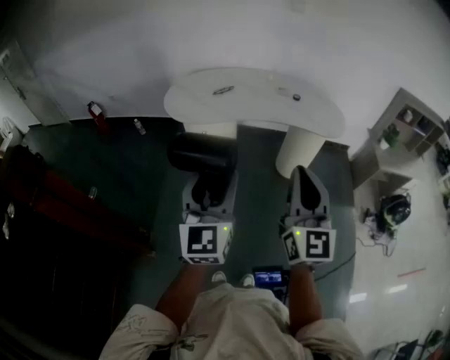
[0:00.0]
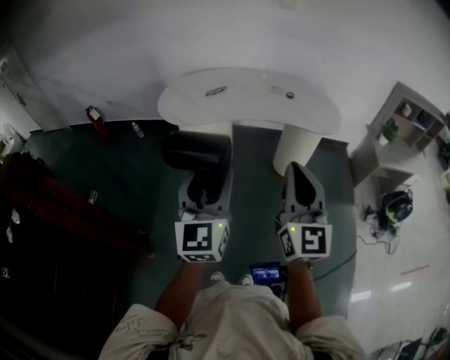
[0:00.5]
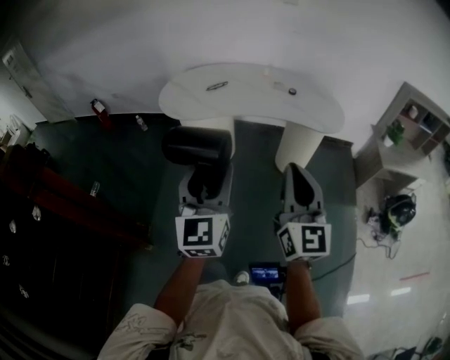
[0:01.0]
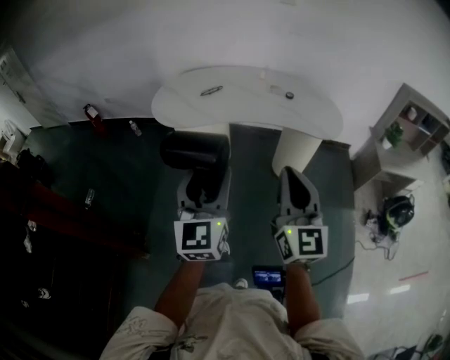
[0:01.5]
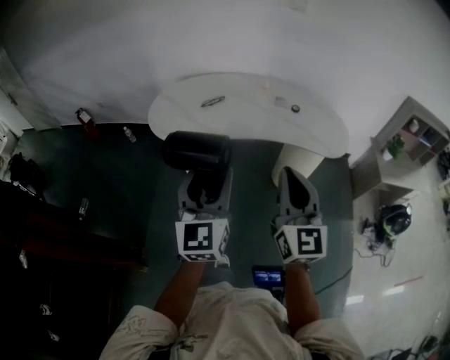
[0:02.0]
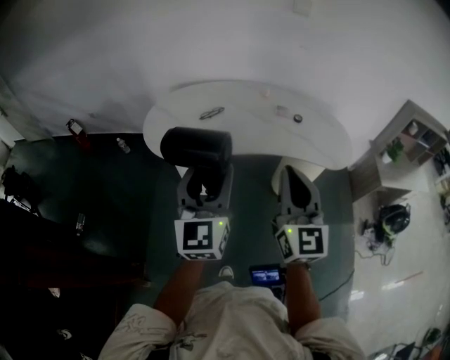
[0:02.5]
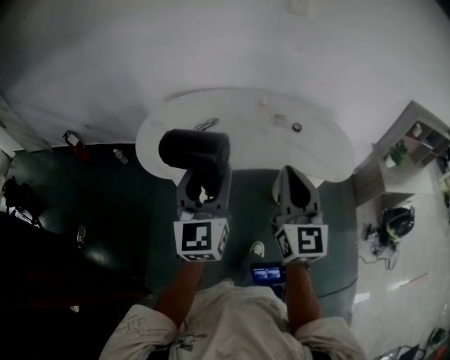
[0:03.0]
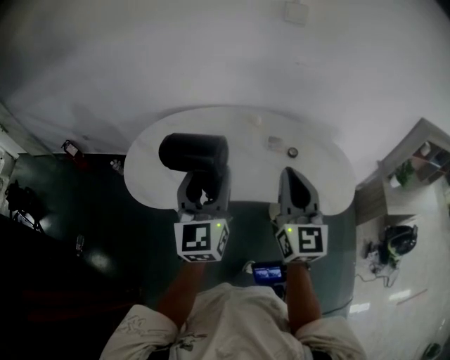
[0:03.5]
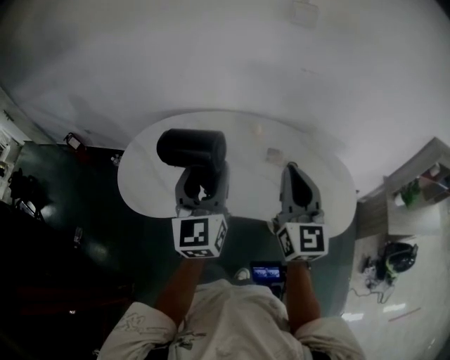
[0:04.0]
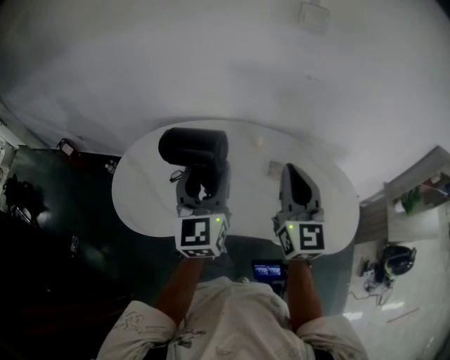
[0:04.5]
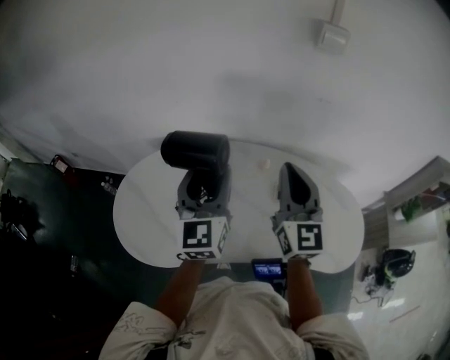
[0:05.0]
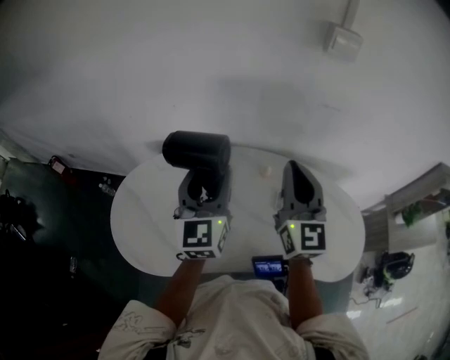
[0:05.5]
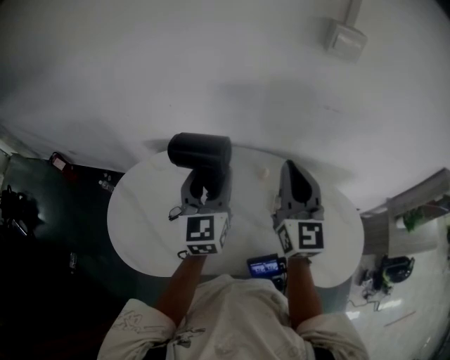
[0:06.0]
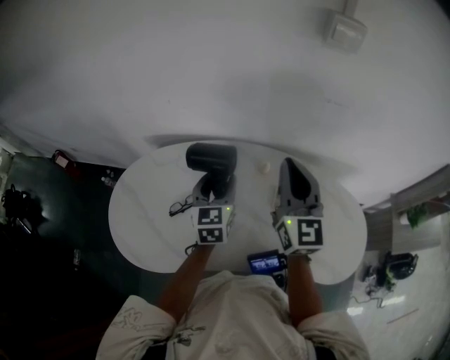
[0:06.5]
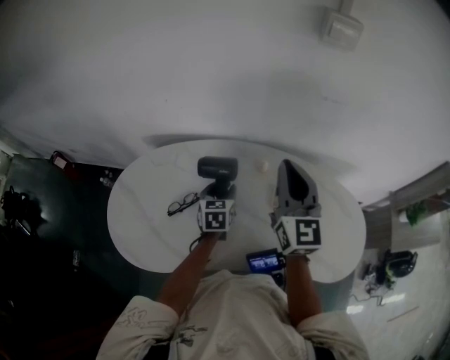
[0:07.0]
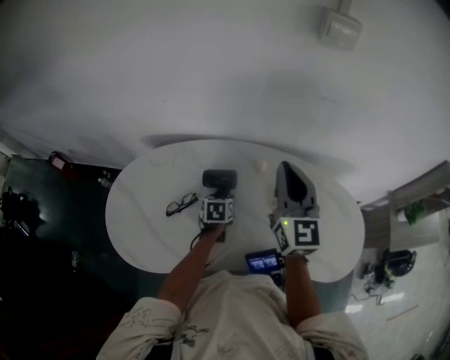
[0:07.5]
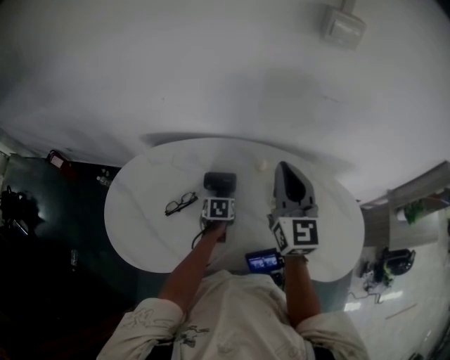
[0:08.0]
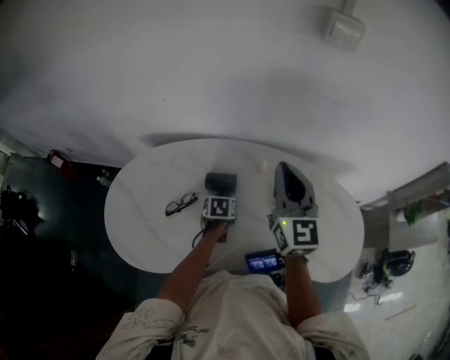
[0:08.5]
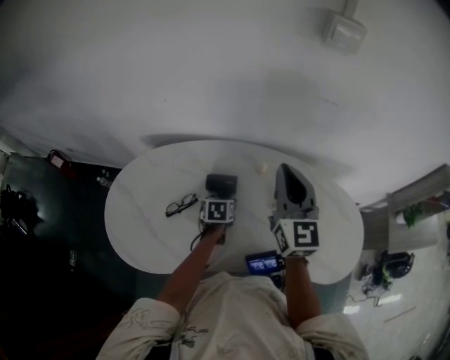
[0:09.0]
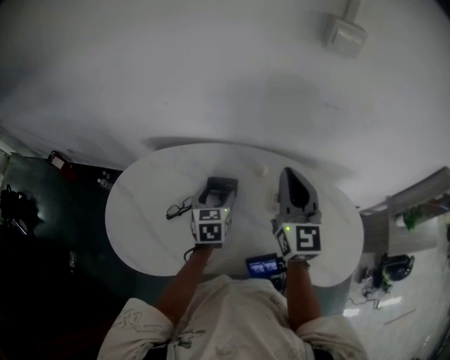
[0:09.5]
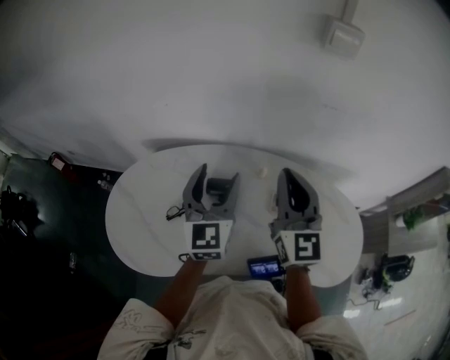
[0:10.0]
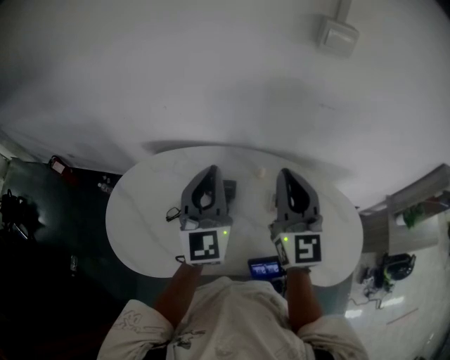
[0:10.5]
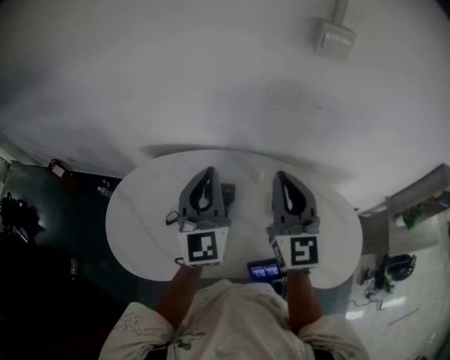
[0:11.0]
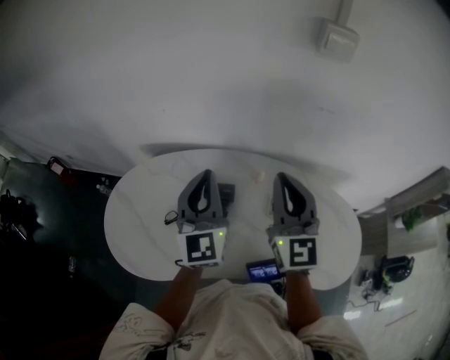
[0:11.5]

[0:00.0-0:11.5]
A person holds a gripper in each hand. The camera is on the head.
0:00.0 to 0:02.0: Both grippers move forward, some 15 cm.
0:02.0 to 0:04.0: The two grippers travel together, forward, roughly 40 cm.
0:04.0 to 0:06.0: The grippers both shift forward by some 25 cm.
0:06.0 to 0:07.5: The left gripper shifts roughly 30 cm downward, and points its fingers approximately 50 degrees further downward.
0:07.5 to 0:09.5: The left gripper goes approximately 10 cm upward.
0:09.5 to 0:11.5: The left gripper travels upward by some 20 cm, points its fingers approximately 40 degrees further upward, and closes its fingers.

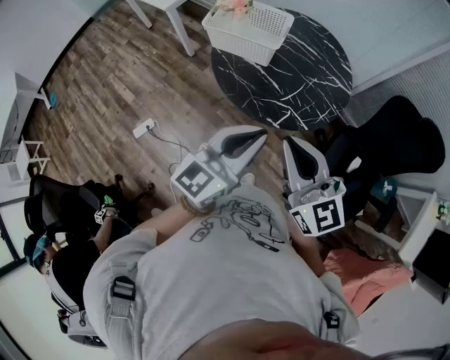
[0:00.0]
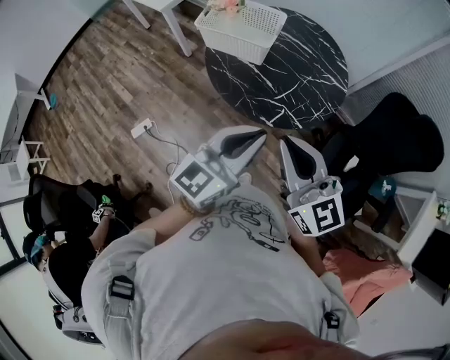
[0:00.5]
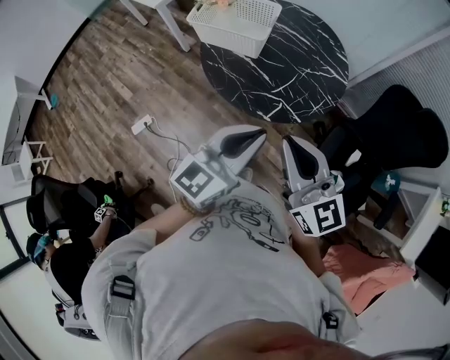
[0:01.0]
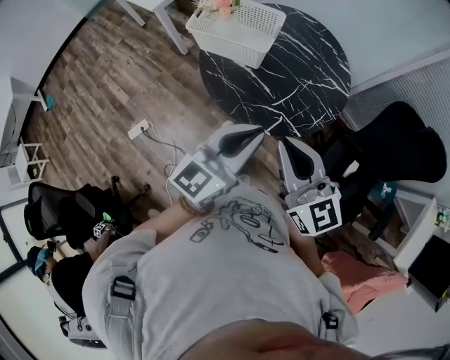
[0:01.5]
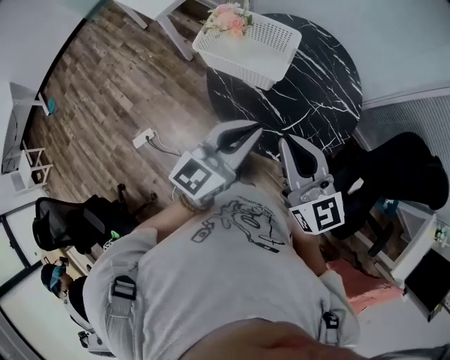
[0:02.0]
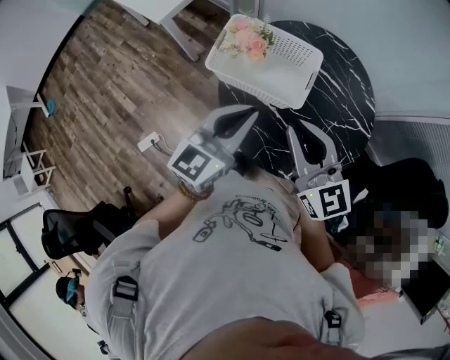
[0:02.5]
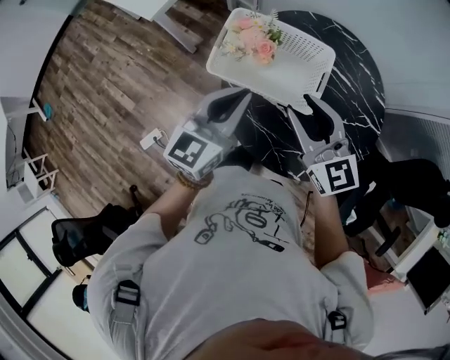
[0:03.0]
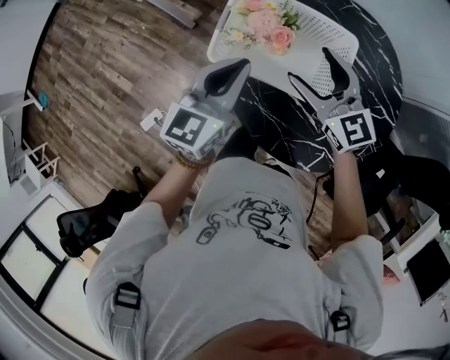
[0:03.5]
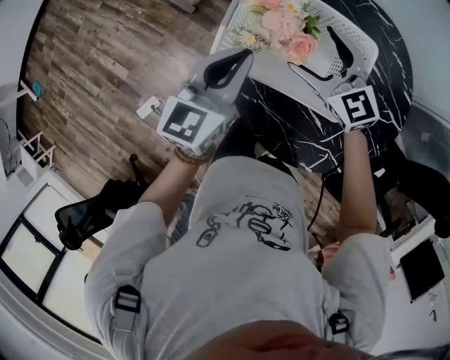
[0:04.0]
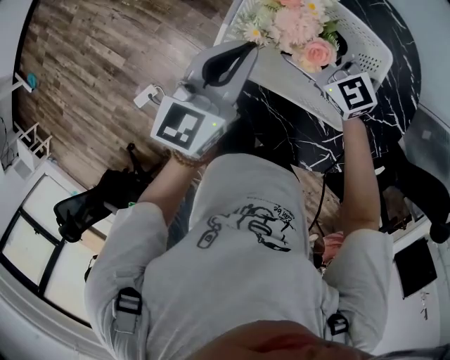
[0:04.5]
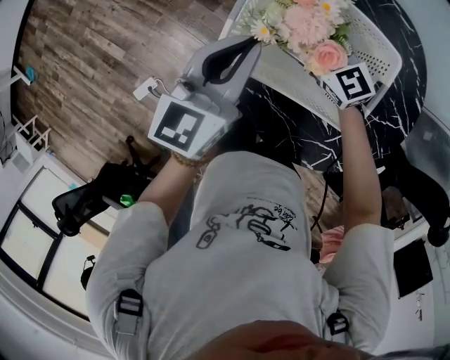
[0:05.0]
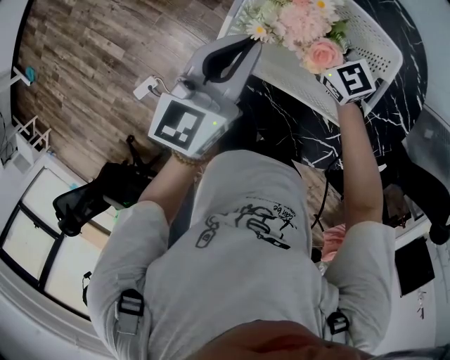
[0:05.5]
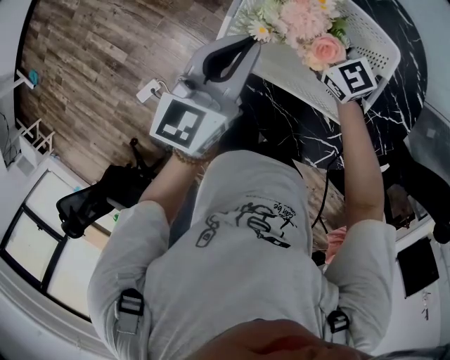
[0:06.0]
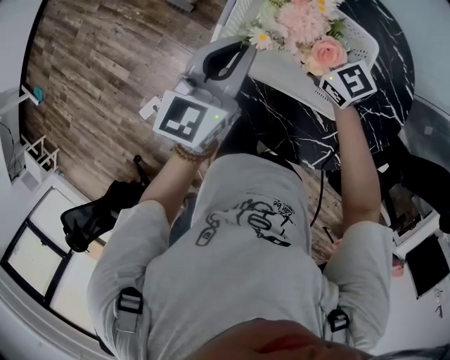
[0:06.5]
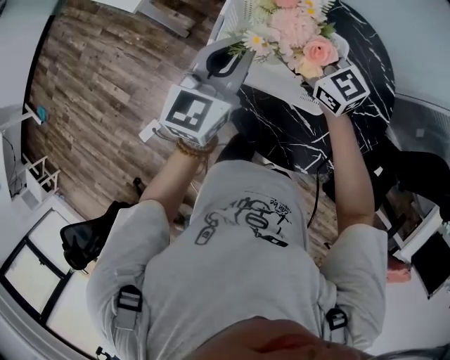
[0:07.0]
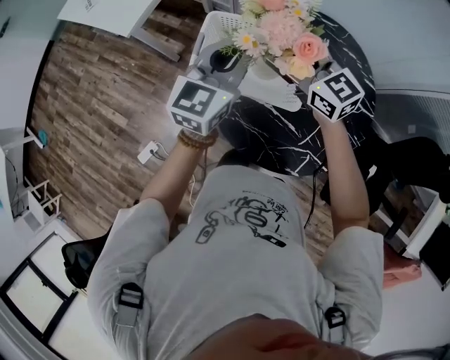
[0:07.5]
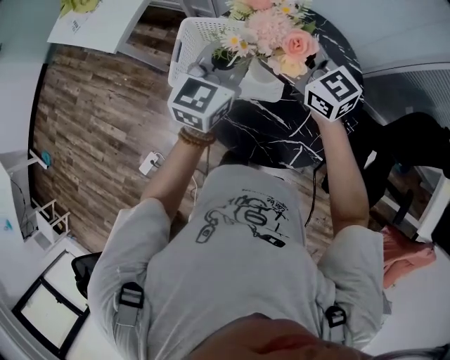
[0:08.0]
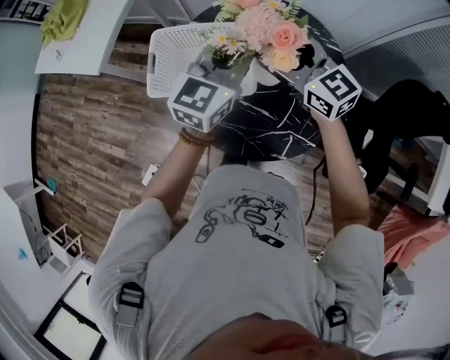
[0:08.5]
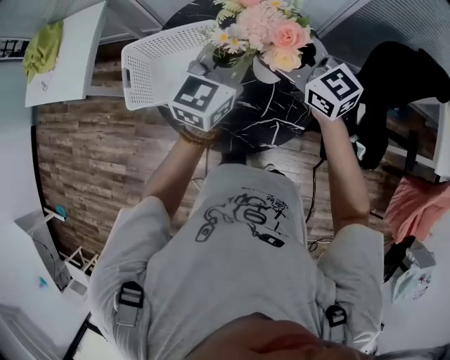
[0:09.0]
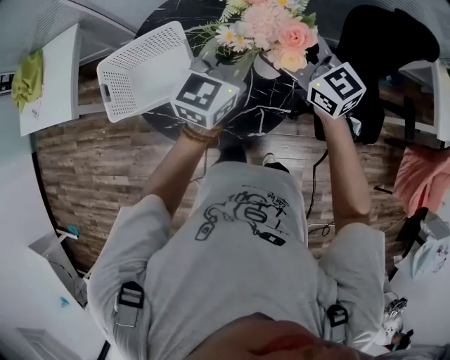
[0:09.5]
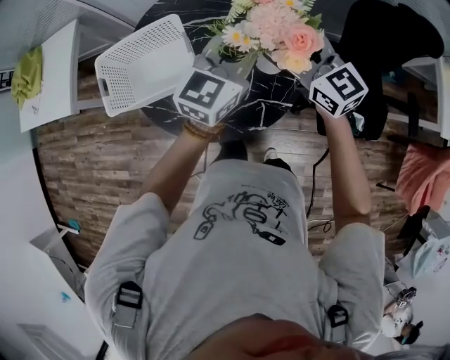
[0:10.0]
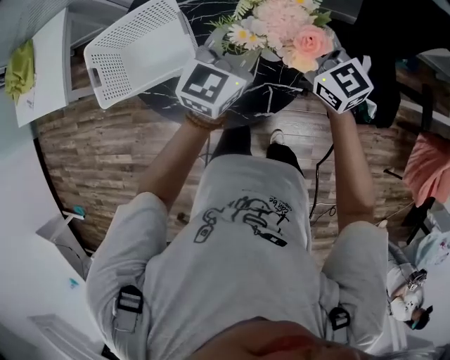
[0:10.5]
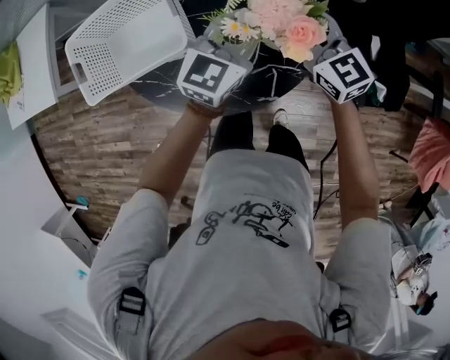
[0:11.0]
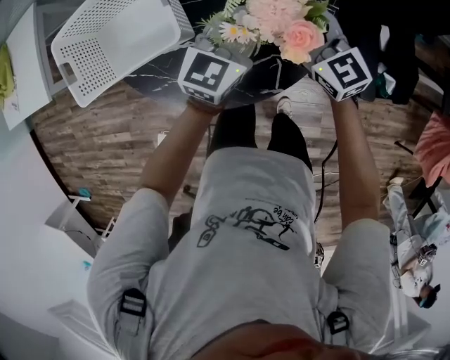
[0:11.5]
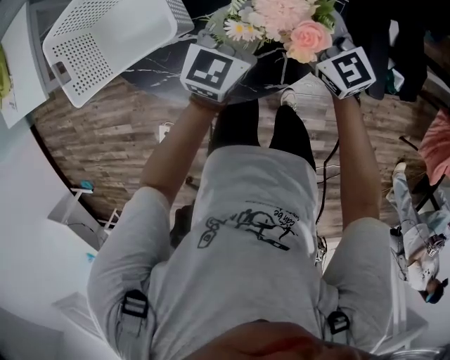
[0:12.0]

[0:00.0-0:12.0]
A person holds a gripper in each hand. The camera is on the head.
0:00.0 to 0:02.0: Both grippers travel together forward, approximately 20 cm.
0:02.0 to 0:04.0: The right gripper goes about 50 cm forward and downward, rotates about 20 degrees, and opens, while the left gripper is displaced forward, to the left and downward by some 40 cm.
0:04.0 to 0:06.0: The right gripper moves downward, about 5 cm.
0:06.0 to 0:08.0: The left gripper moves to the right and upward, about 25 cm, and swivels about 20 degrees. The right gripper is displaced upward, to the right and backward by roughly 30 cm.
0:08.0 to 0:10.0: The right gripper ends up some 30 cm from where it was, and changes its angle by roughly 30 degrees. Meanwhile the left gripper moves roughly 30 cm, and rotates about 30 degrees.
0:10.0 to 0:12.0: Both grippers travel together downward, some 25 cm.

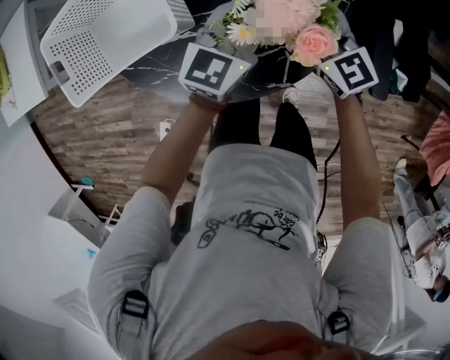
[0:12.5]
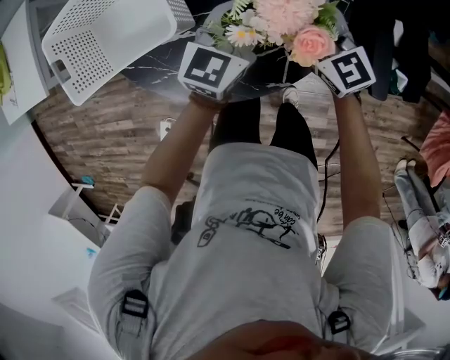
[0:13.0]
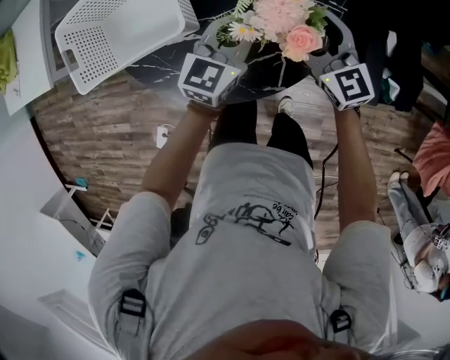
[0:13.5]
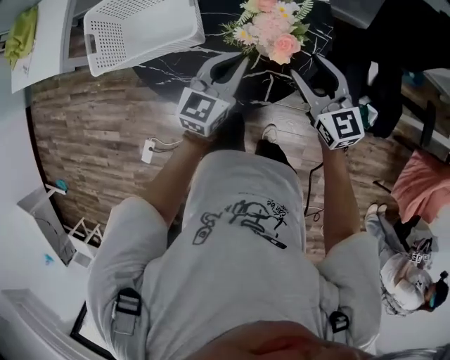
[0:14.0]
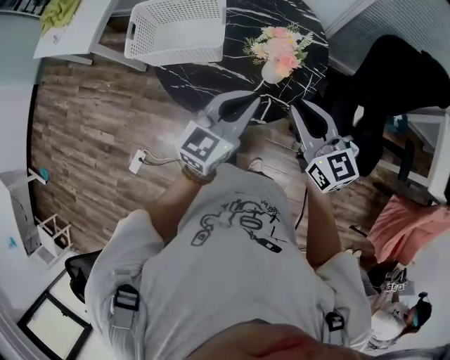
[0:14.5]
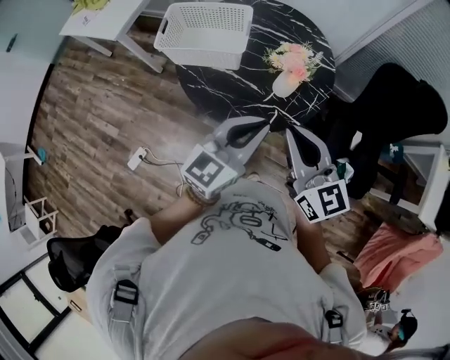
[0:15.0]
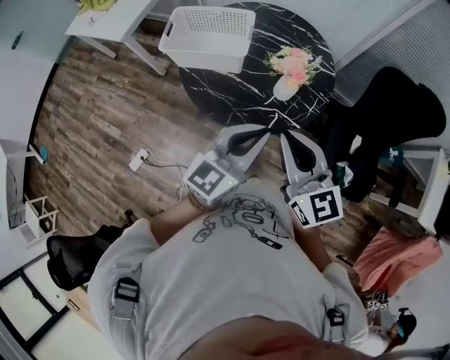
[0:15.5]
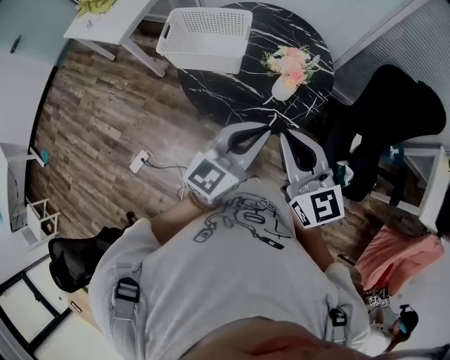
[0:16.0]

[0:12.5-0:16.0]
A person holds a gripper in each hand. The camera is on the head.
0:12.5 to 0:14.5: The right gripper moves upward and backward, some 30 cm, and closes up, while the left gripper moves backward and upward, roughly 25 cm.
0:14.5 to 0:16.0: The left gripper shifts some 15 cm backward and upward; the right gripper is displaced upward and backward by about 15 cm.
